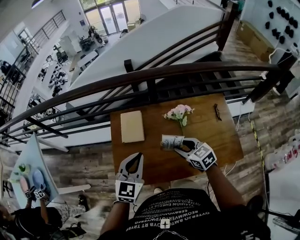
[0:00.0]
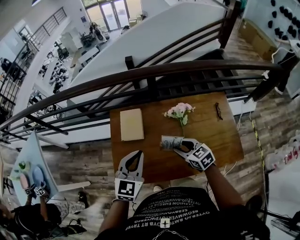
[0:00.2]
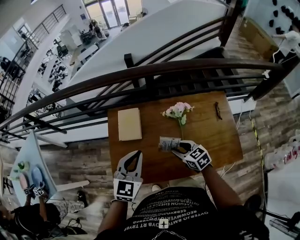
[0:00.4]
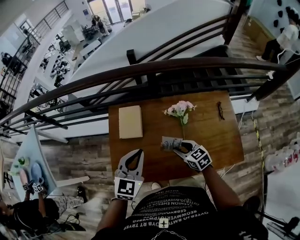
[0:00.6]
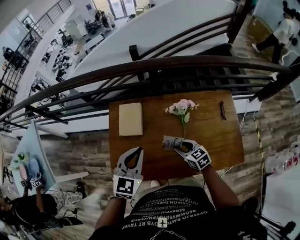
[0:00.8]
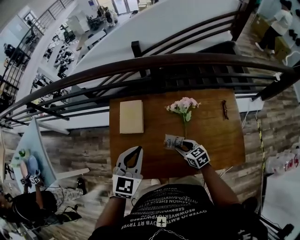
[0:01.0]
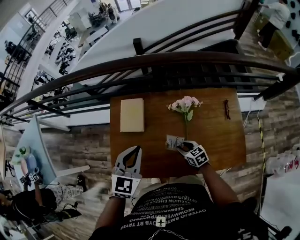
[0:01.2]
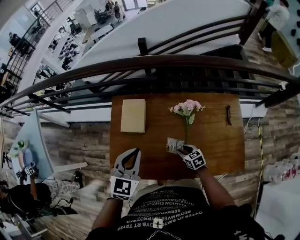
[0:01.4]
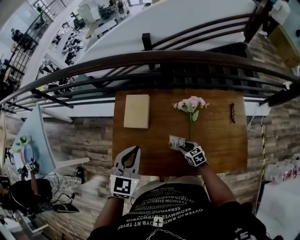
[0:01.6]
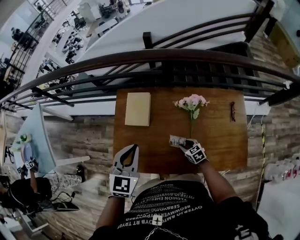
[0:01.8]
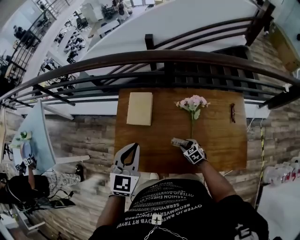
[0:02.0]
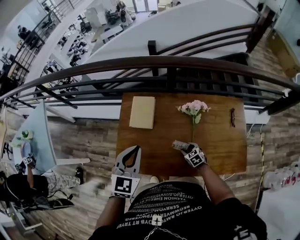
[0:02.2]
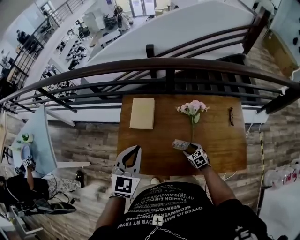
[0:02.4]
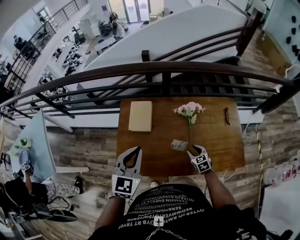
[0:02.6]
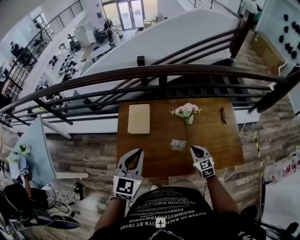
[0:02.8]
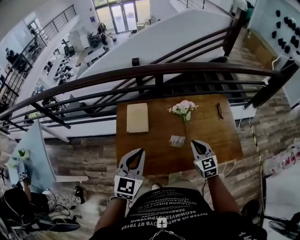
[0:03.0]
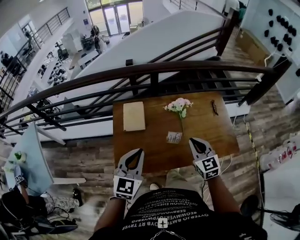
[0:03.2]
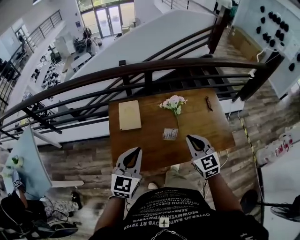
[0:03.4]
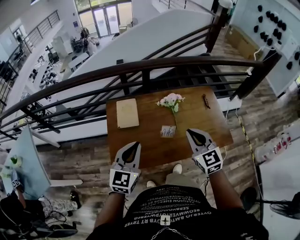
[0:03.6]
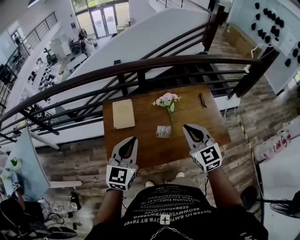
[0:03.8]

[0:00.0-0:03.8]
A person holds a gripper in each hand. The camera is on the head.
0:00.0 to 0:01.2: The left gripper moves about 5 cm; the right gripper shifts some 20 cm downward.
0:01.2 to 0:02.6: The right gripper travels downward and back again, about 10 cm each way. Meanwhile the left gripper shifts roughly 5 cm to the left.
0:02.6 to 0:03.8: The right gripper shifts approximately 35 cm upward, rotates approximately 30 degrees, and closes its fingers; the left gripper heads backward, covering some 5 cm.

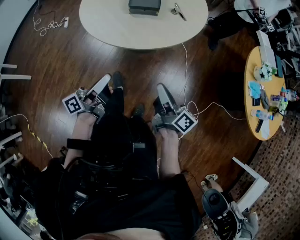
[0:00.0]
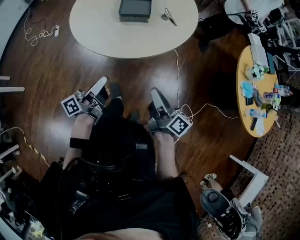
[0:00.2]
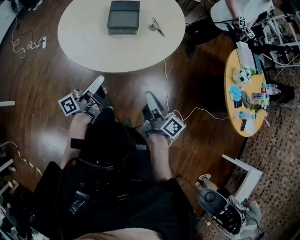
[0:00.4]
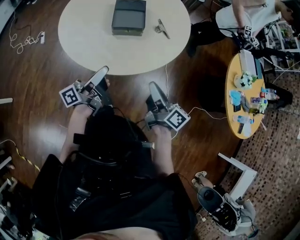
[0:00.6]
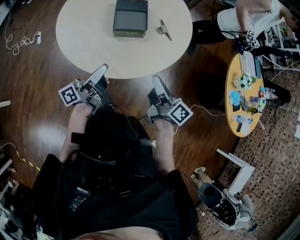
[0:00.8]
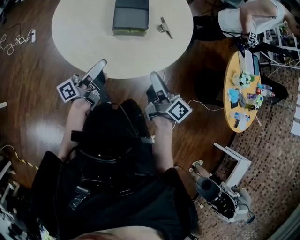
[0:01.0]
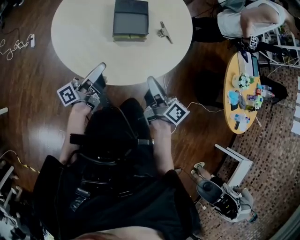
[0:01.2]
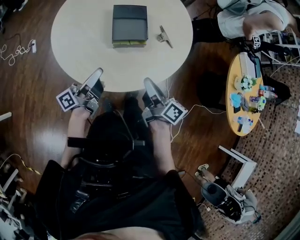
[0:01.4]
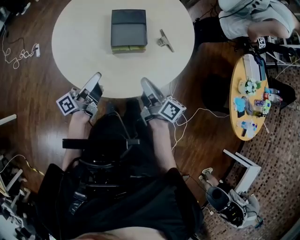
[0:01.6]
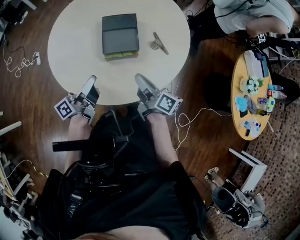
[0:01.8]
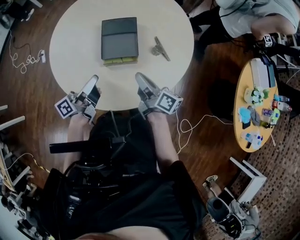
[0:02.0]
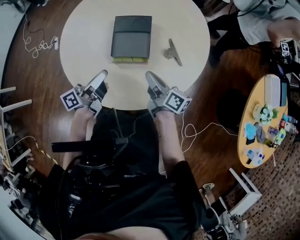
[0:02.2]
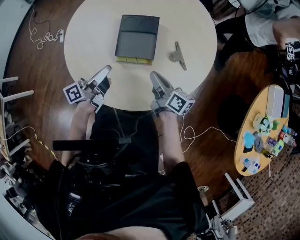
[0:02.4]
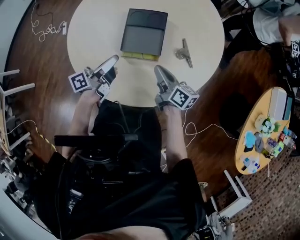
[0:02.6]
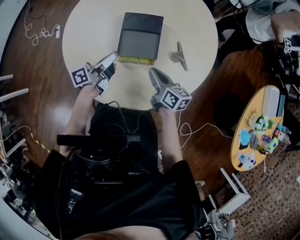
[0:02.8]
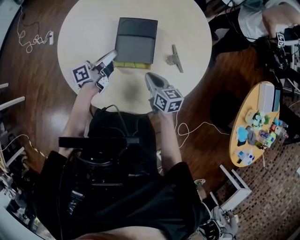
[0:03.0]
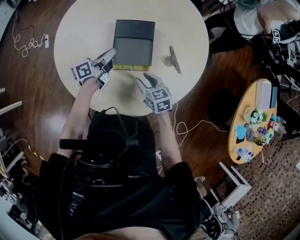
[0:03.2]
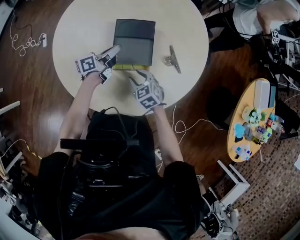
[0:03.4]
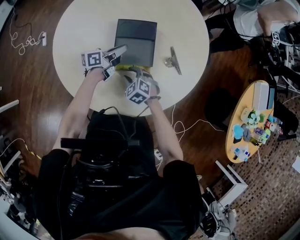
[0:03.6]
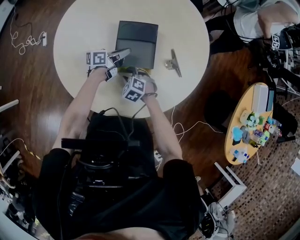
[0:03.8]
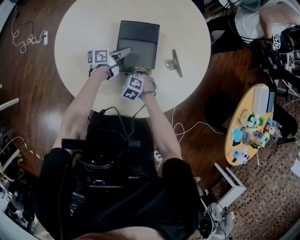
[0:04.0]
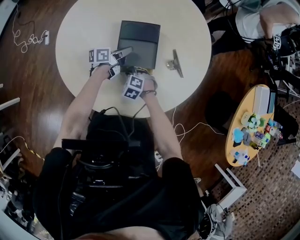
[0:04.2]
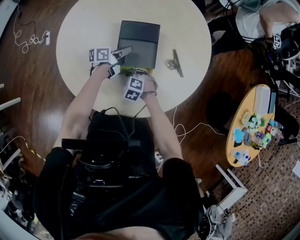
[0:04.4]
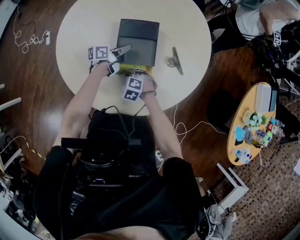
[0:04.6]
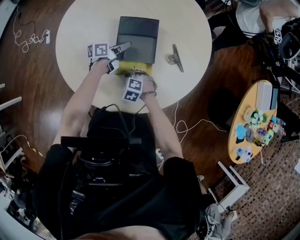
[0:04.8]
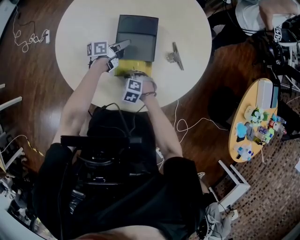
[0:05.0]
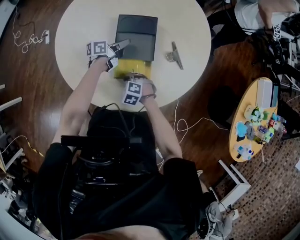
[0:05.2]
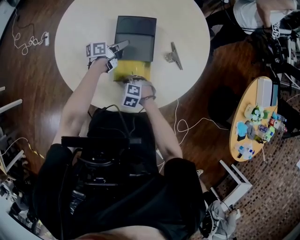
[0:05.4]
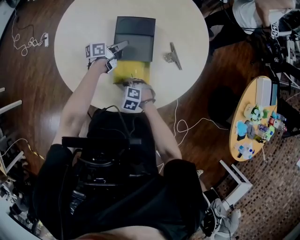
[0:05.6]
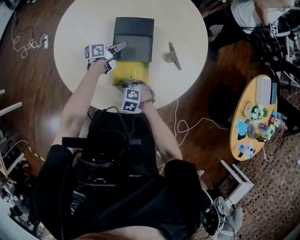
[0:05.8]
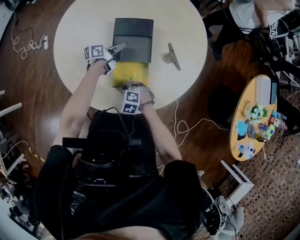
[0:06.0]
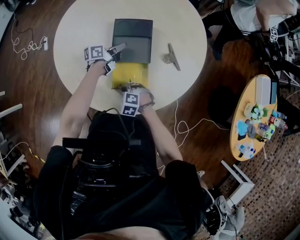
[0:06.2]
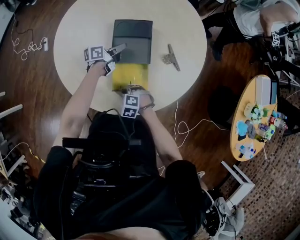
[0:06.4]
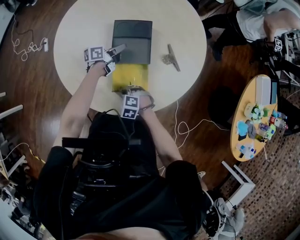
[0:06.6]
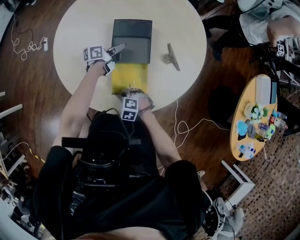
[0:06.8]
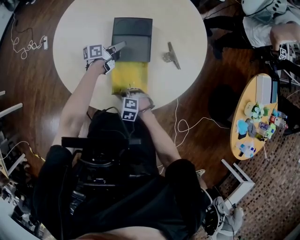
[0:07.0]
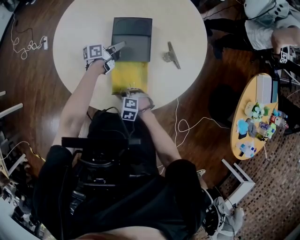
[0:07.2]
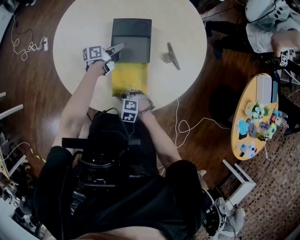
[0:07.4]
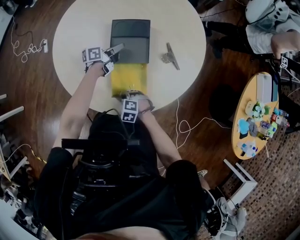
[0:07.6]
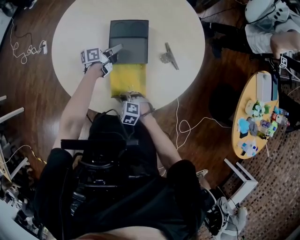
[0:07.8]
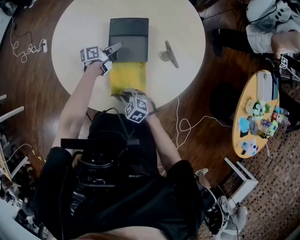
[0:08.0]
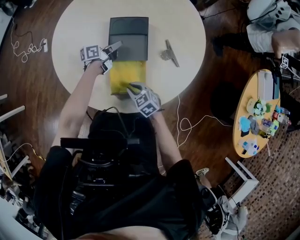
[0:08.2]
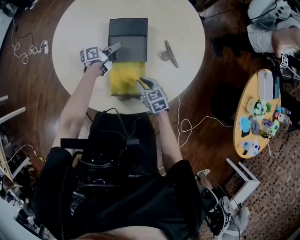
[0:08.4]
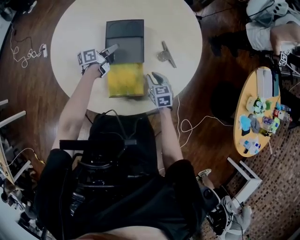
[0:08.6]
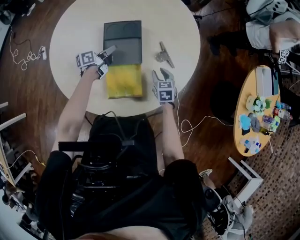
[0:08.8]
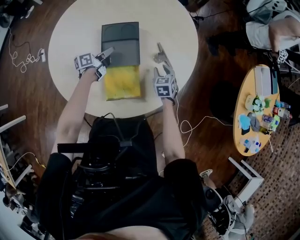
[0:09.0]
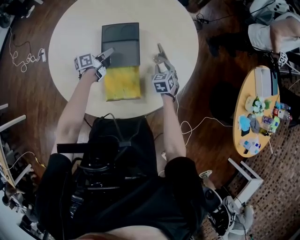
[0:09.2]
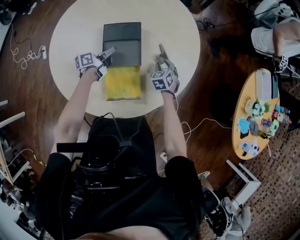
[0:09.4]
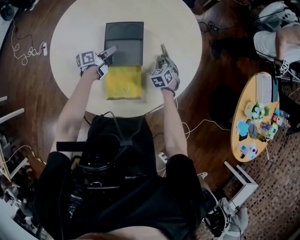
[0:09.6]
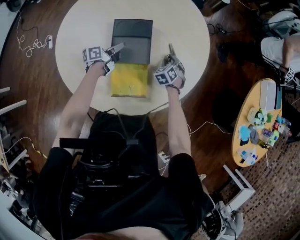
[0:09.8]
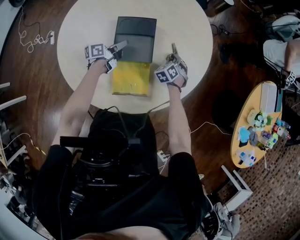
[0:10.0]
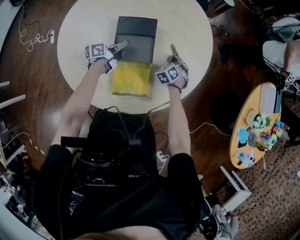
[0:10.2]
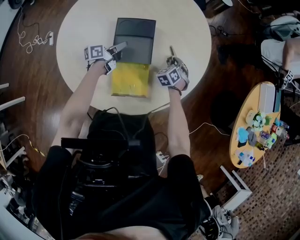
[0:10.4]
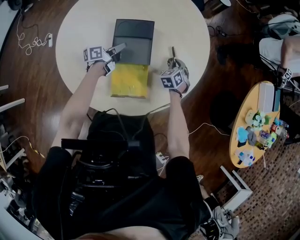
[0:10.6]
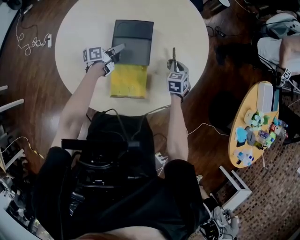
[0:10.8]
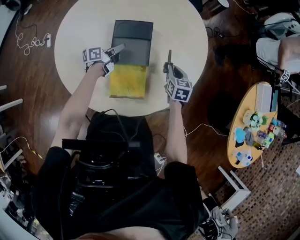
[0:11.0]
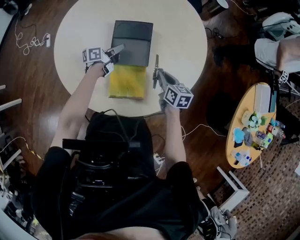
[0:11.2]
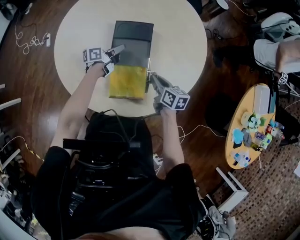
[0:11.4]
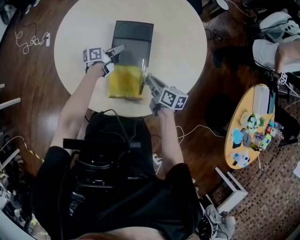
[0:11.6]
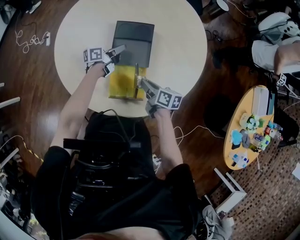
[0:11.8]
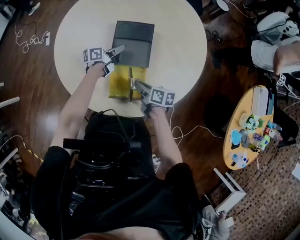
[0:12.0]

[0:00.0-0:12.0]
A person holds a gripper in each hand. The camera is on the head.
0:00.0 to 0:01.6: The right gripper heads forward and to the left, covering about 35 cm, while the left gripper heads forward, covering roughly 35 cm.
0:01.6 to 0:03.0: The left gripper heads forward, covering some 20 cm, while the right gripper goes approximately 20 cm forward and downward, and changes its angle by roughly 40 degrees.
0:03.0 to 0:04.4: The left gripper goes approximately 15 cm downward and forward. Meanwhile the right gripper shifts approximately 20 cm downward and to the left, twists some 70 degrees counterclockwise, seen from behind, and opens, then closes again.
0:04.4 to 0:06.0: The right gripper moves backward, approximately 10 cm.
0:06.0 to 0:07.6: The grippers stay close to where they were, moving slightly.
0:07.6 to 0:09.0: The right gripper changes place by some 30 cm, rotates around the line of its fingers by some 60 degrees, clockwise from behind, and opens up.
0:09.0 to 0:10.4: The right gripper shifts approximately 5 cm forward, changes its angle by some 30 degrees, and closes.
0:10.4 to 0:12.0: The right gripper ends up some 25 cm from where it was, and swivels roughly 90 degrees.

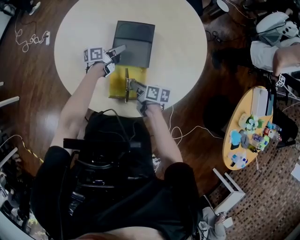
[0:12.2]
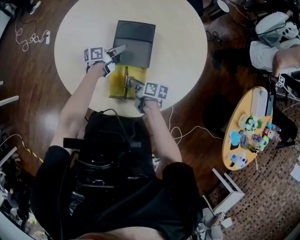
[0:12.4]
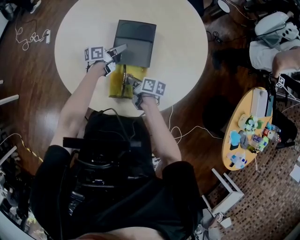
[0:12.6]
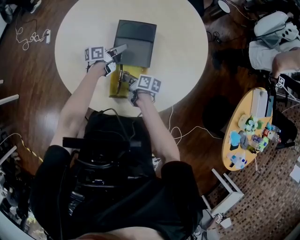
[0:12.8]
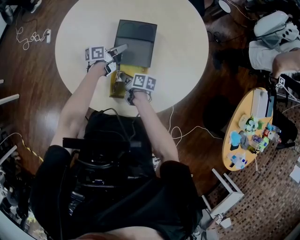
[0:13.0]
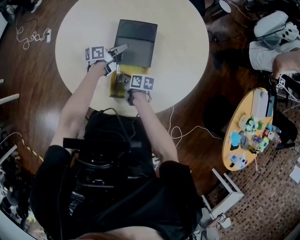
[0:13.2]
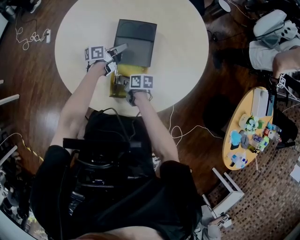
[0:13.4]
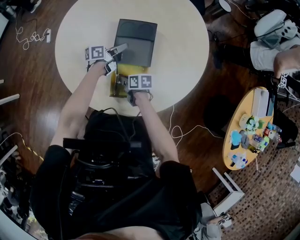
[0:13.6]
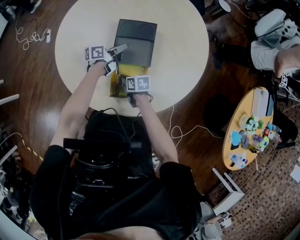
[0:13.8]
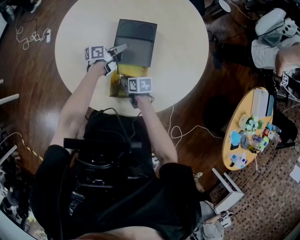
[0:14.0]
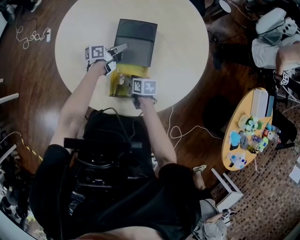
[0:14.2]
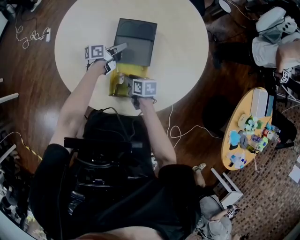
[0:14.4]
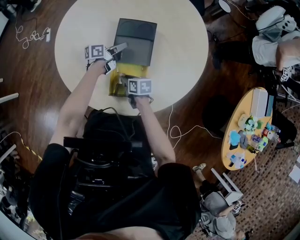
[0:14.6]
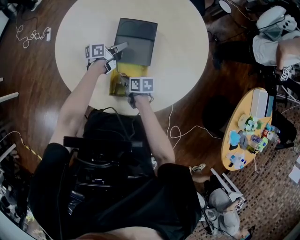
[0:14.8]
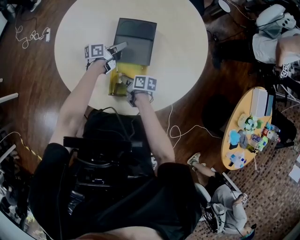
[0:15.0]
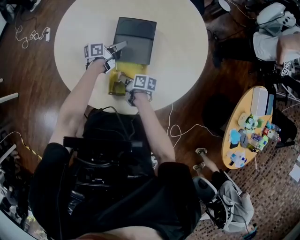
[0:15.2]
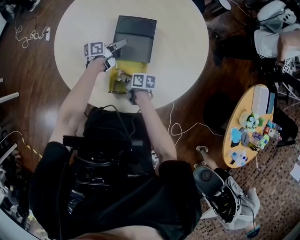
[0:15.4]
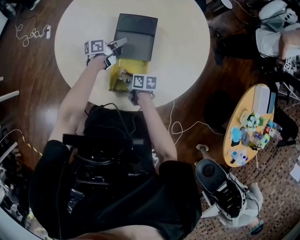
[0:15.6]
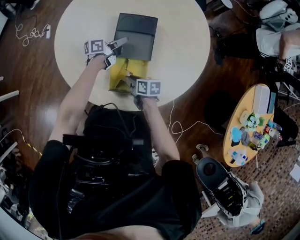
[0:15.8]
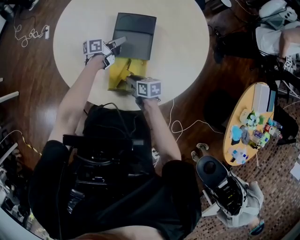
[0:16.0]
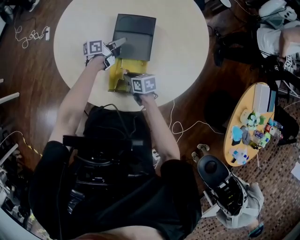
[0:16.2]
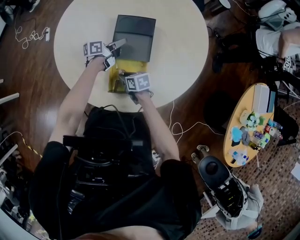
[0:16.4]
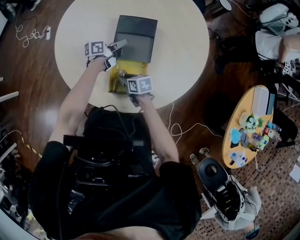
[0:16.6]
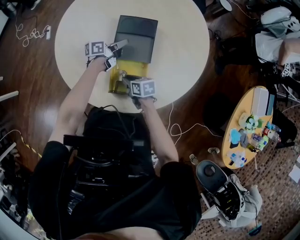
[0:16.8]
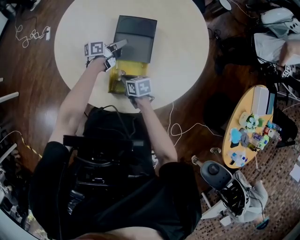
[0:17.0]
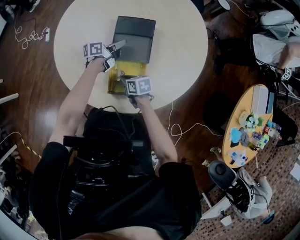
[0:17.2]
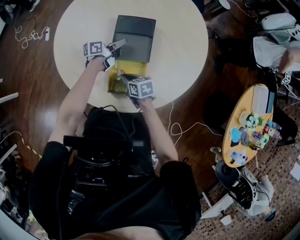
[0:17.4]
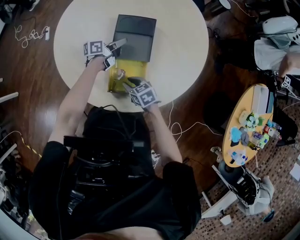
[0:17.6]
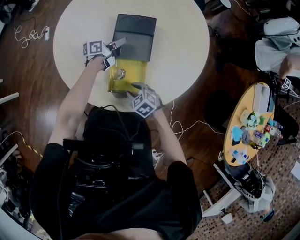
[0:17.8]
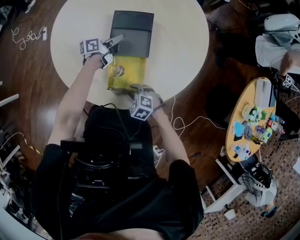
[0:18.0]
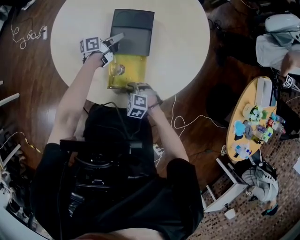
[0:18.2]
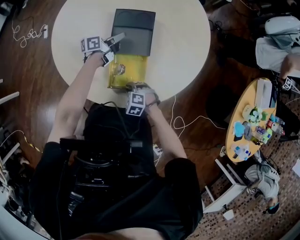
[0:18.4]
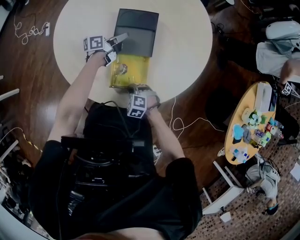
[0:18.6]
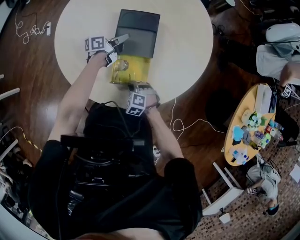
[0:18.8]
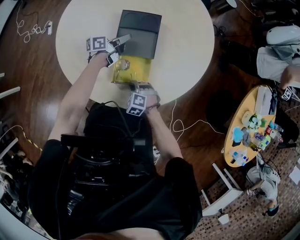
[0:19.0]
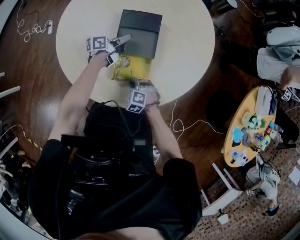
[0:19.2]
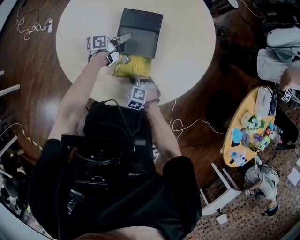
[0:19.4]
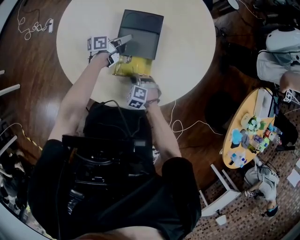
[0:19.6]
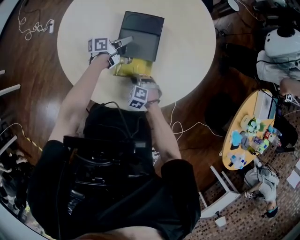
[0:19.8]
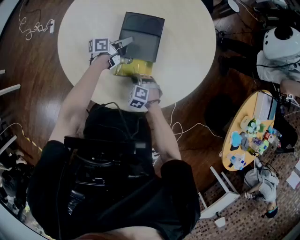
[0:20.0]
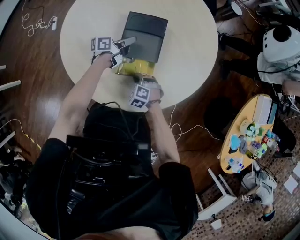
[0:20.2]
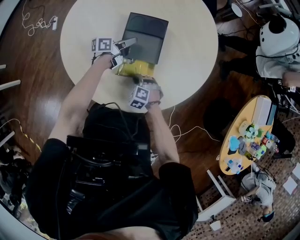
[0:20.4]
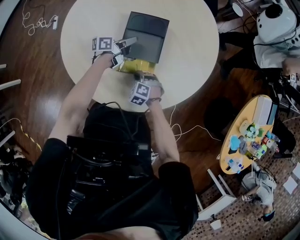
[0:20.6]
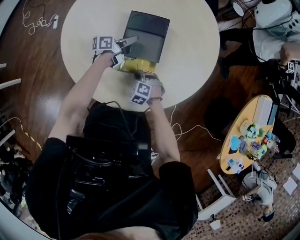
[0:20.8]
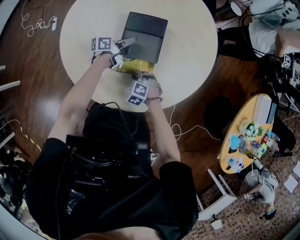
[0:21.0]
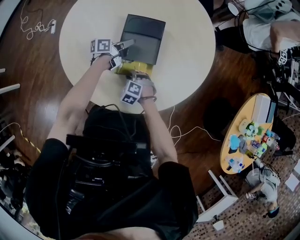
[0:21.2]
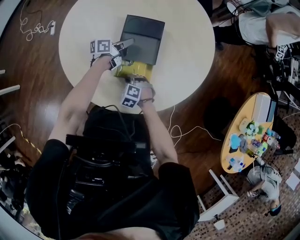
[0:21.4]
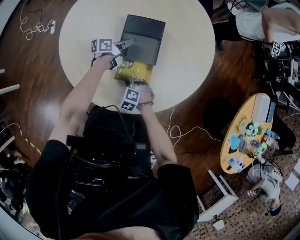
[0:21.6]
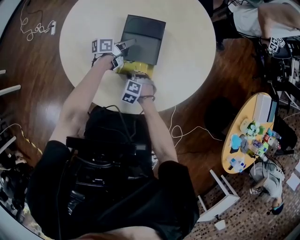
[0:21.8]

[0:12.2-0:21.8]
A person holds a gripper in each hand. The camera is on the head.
0:12.2 to 0:13.8: The right gripper is displaced to the left and downward by approximately 10 cm, and changes its angle by about 20 degrees.
0:15.4 to 0:17.0: The right gripper turns by roughly 30 degrees, and opens, then closes again.
0:17.0 to 0:18.6: The right gripper moves backward, approximately 10 cm, twists approximately 70 degrees counterclockwise, seen from behind, and opens, then closes once more.
0:18.6 to 0:20.2: The right gripper travels forward by some 10 cm.
0:20.2 to 0:21.8: The grippers make only small movements.
